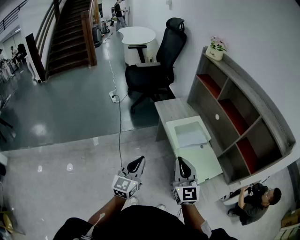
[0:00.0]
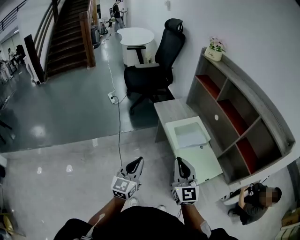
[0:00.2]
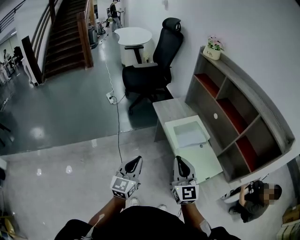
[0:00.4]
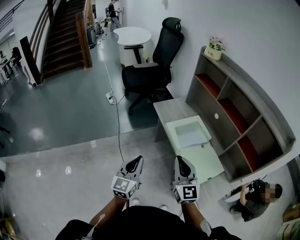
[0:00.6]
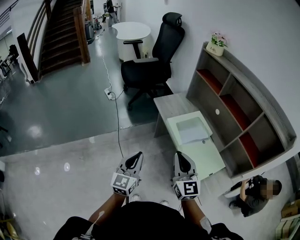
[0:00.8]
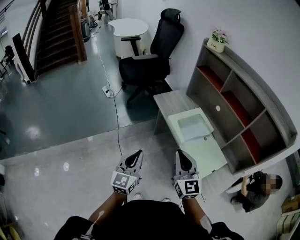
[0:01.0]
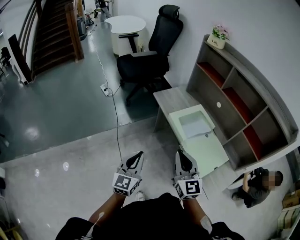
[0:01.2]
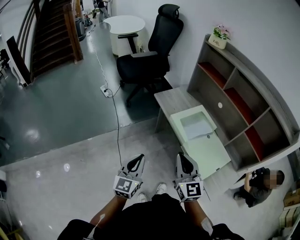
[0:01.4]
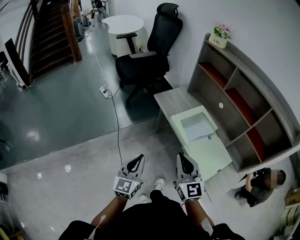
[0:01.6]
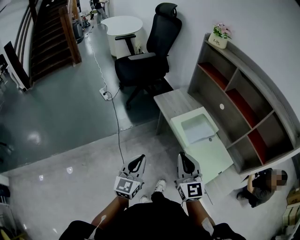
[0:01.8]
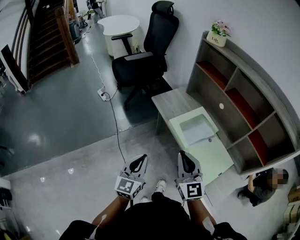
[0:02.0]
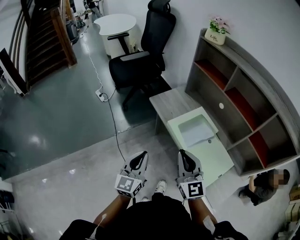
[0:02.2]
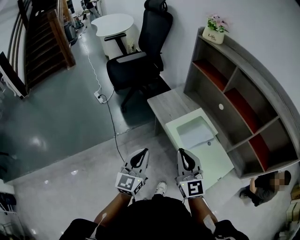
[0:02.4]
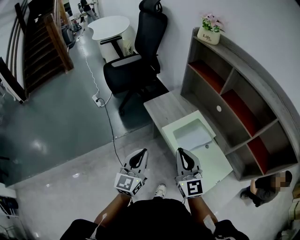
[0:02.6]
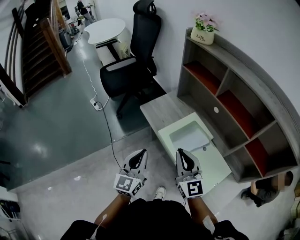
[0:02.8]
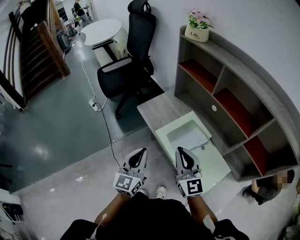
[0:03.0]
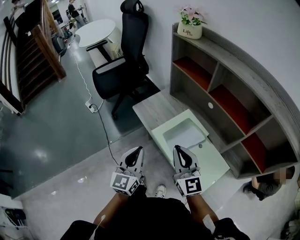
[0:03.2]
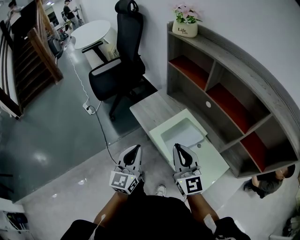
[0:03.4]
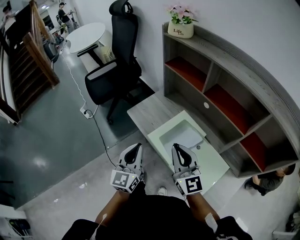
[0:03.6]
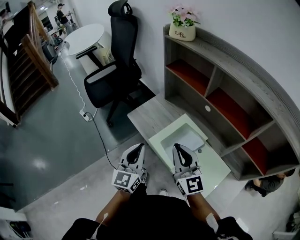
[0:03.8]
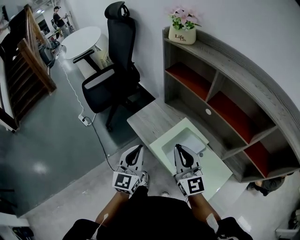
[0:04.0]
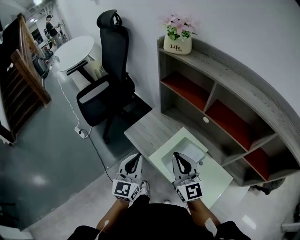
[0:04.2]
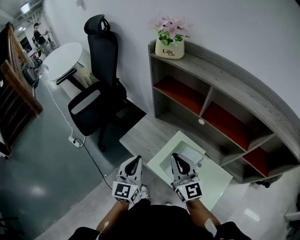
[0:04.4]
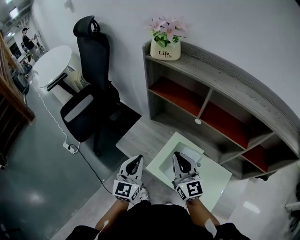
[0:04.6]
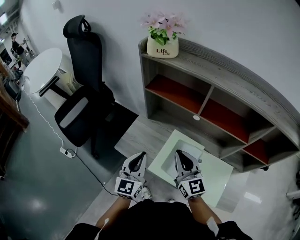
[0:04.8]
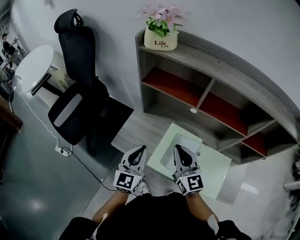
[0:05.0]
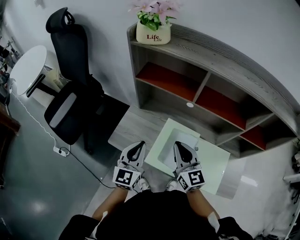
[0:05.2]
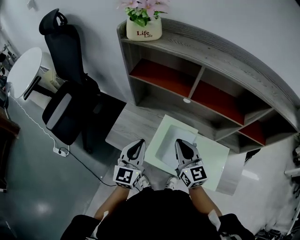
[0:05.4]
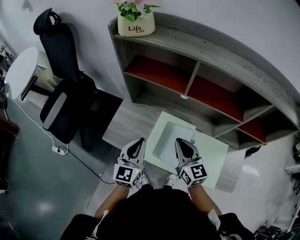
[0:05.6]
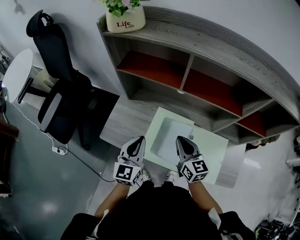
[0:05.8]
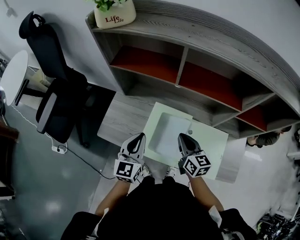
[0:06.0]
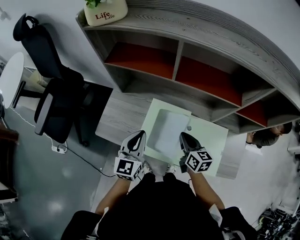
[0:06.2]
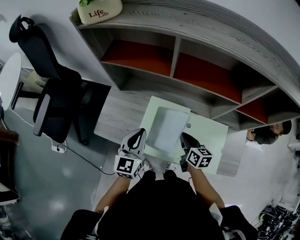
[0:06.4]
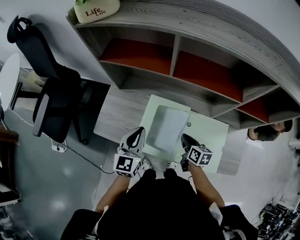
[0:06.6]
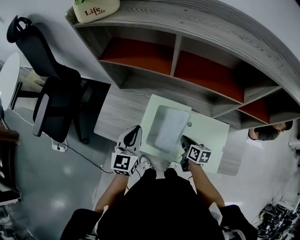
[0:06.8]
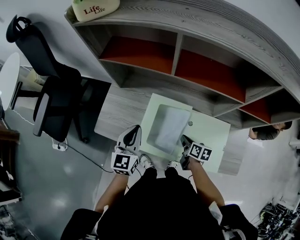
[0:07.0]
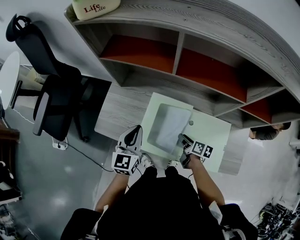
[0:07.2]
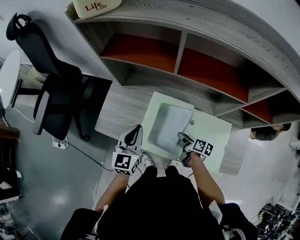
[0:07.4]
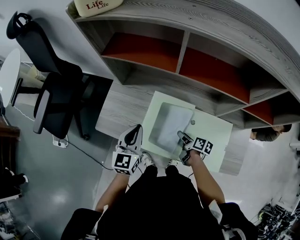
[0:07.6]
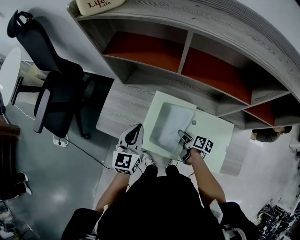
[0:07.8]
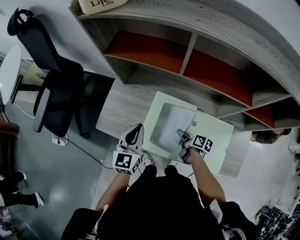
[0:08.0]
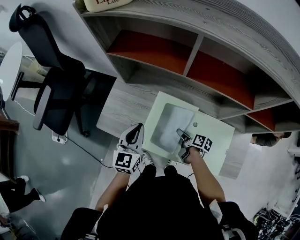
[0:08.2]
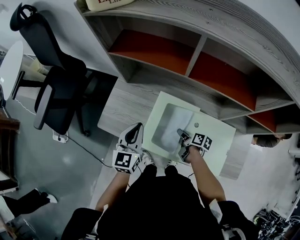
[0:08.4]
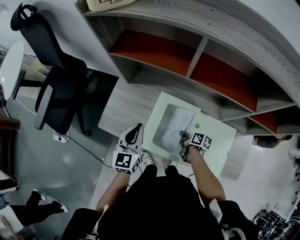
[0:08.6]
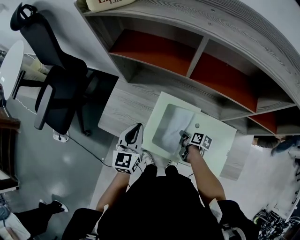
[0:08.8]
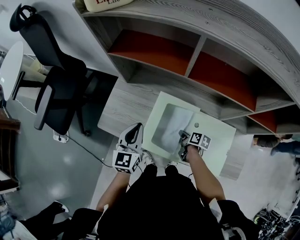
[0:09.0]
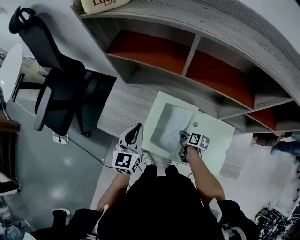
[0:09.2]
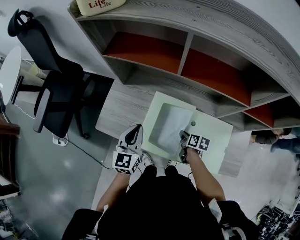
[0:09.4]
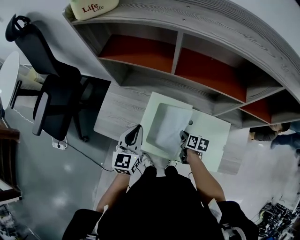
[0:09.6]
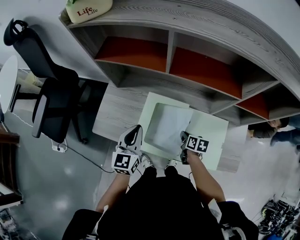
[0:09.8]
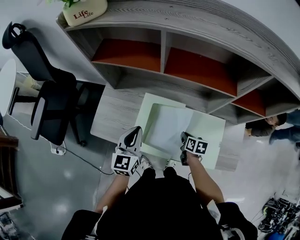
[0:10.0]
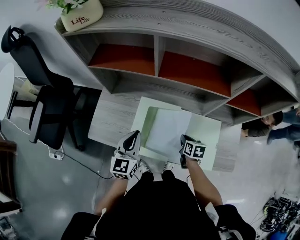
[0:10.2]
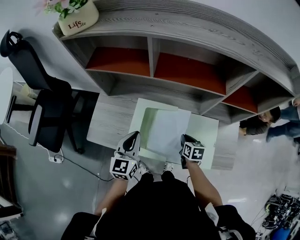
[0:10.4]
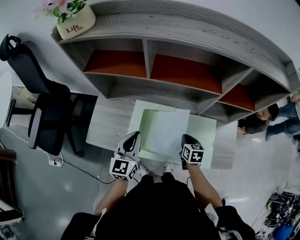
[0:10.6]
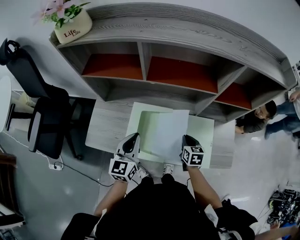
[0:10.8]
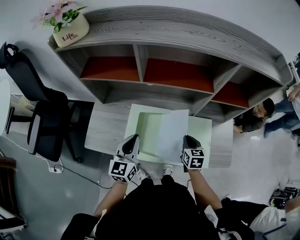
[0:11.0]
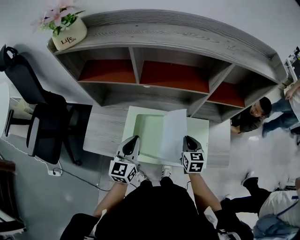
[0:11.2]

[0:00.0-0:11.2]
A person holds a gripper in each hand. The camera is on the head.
0:00.0 to 0:01.6: The grippers both shift to the left by about 10 cm.
0:01.6 to 0:03.2: Both grippers move forward and to the right, some 20 cm.
0:03.2 to 0:04.8: Both grippers travel together forward, about 20 cm. The right gripper swivels some 20 degrees. The left gripper turns by about 20 degrees.
0:04.8 to 0:06.4: The left gripper goes about 10 cm to the right and downward. Meanwhile the right gripper travels downward and to the right by roughly 25 cm, and tilts its fingers about 30 degrees downward.
0:06.4 to 0:08.0: The right gripper heads downward, covering about 10 cm, changes its angle by roughly 40 degrees, and opens its fingers.
0:08.0 to 0:09.6: The right gripper rotates roughly 20 degrees, and closes.
0:09.6 to 0:11.2: The right gripper travels upward and to the right by about 15 cm, and rotates about 40 degrees; the left gripper moves to the right, roughly 10 cm.

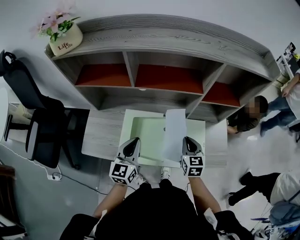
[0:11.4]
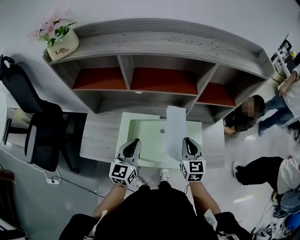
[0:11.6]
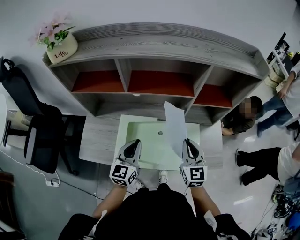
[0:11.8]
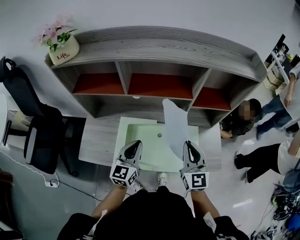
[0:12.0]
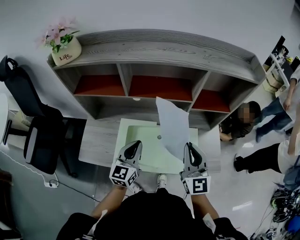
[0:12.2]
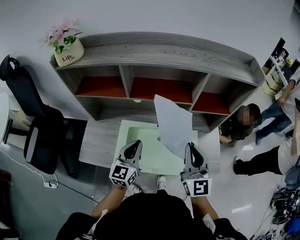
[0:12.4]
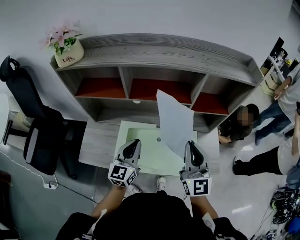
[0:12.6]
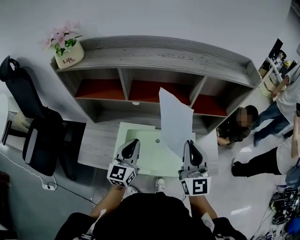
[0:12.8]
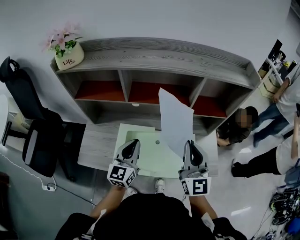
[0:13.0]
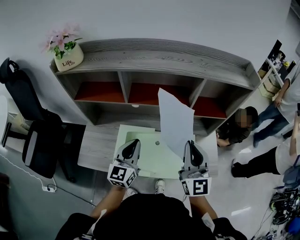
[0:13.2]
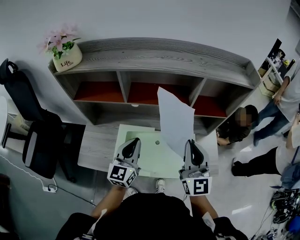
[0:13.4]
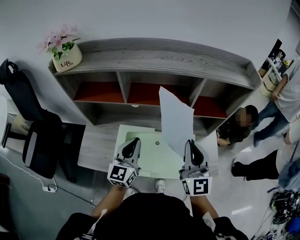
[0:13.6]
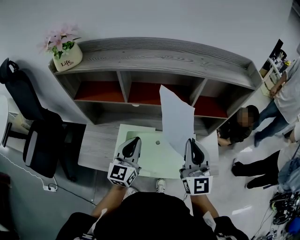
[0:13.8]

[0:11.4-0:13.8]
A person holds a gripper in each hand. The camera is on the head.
0:11.4 to 0:12.6: The left gripper travels upward by some 5 cm; the right gripper moves upward, about 25 cm, and tips its fingers upward by about 40 degrees.
0:12.6 to 0:13.8: The grippers make only small movements.

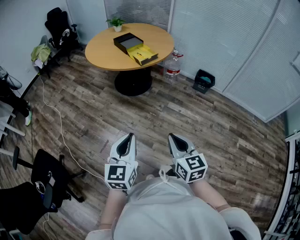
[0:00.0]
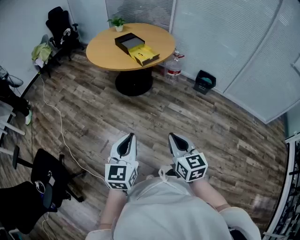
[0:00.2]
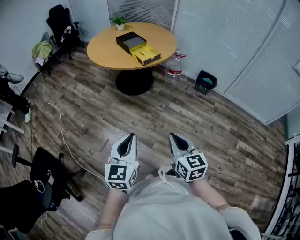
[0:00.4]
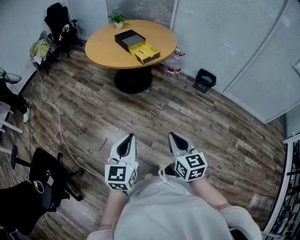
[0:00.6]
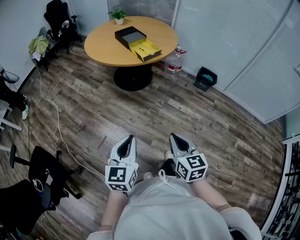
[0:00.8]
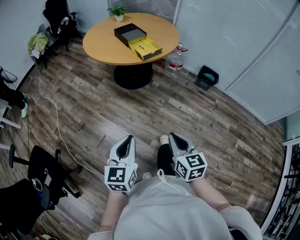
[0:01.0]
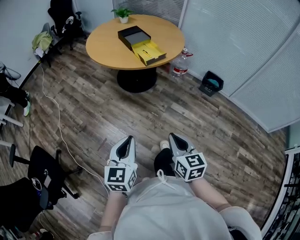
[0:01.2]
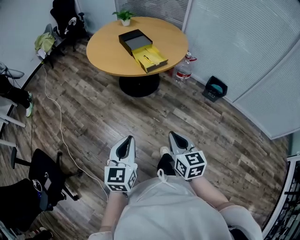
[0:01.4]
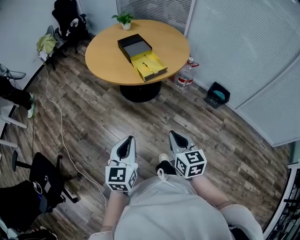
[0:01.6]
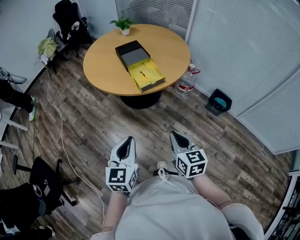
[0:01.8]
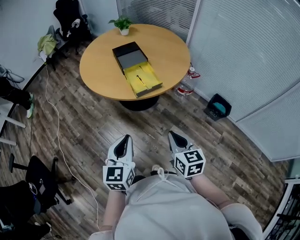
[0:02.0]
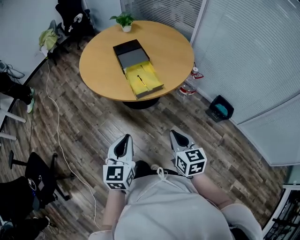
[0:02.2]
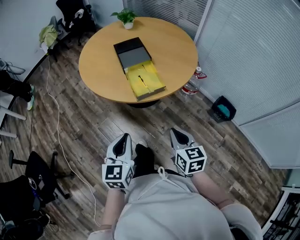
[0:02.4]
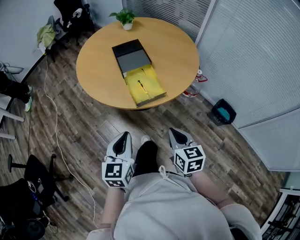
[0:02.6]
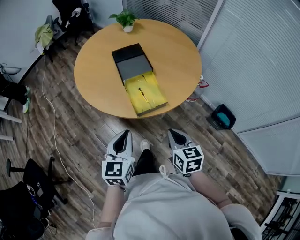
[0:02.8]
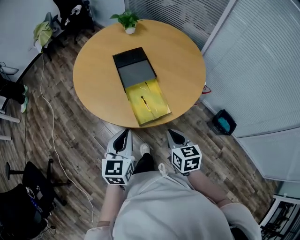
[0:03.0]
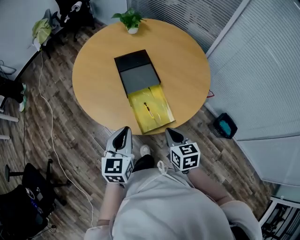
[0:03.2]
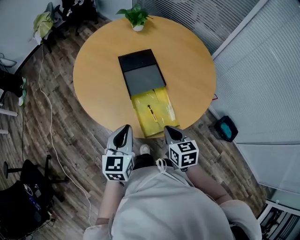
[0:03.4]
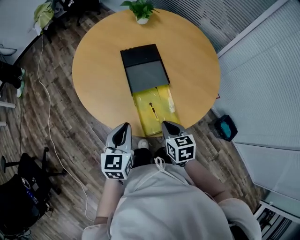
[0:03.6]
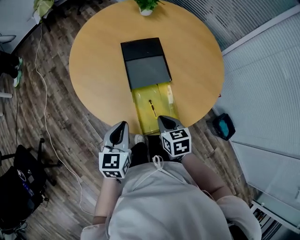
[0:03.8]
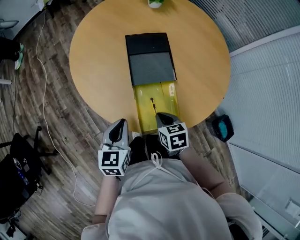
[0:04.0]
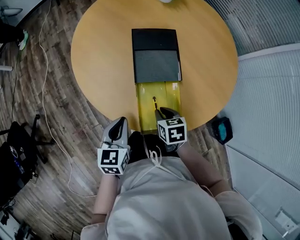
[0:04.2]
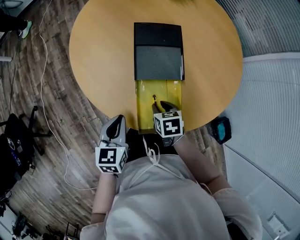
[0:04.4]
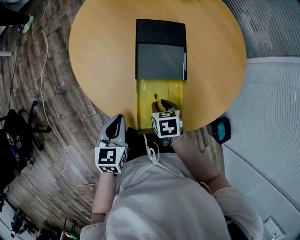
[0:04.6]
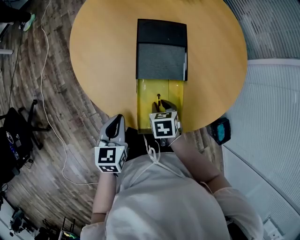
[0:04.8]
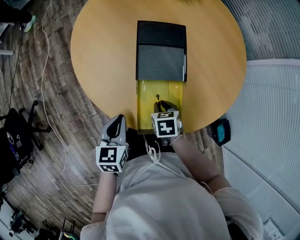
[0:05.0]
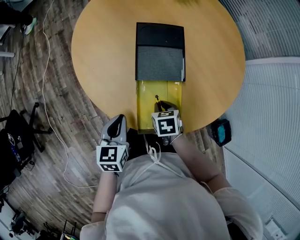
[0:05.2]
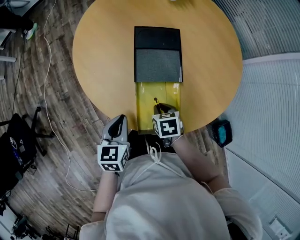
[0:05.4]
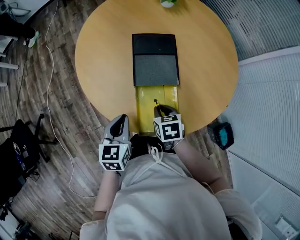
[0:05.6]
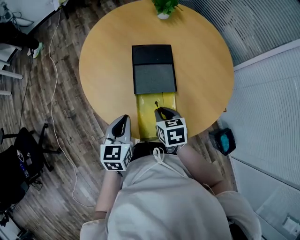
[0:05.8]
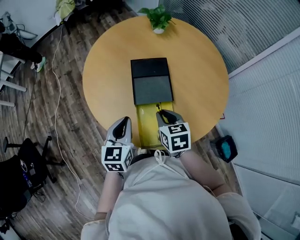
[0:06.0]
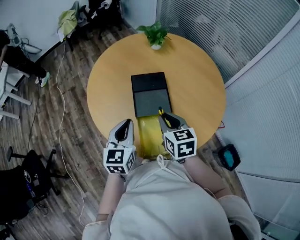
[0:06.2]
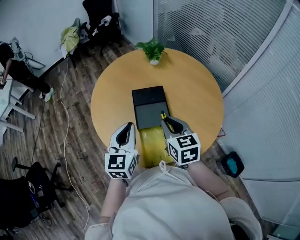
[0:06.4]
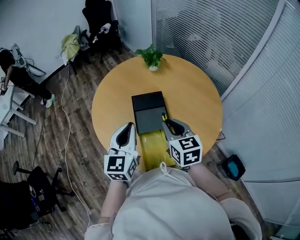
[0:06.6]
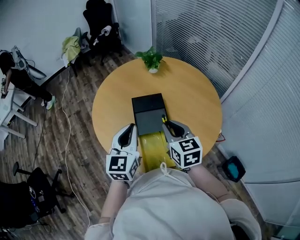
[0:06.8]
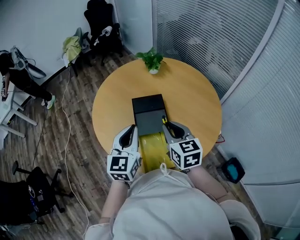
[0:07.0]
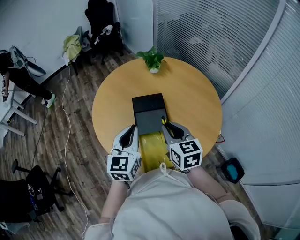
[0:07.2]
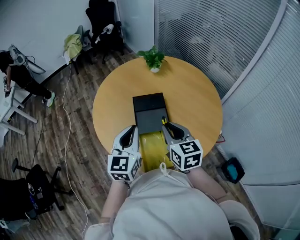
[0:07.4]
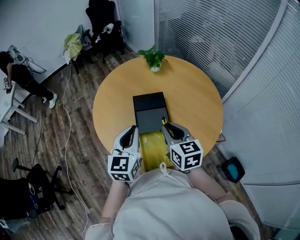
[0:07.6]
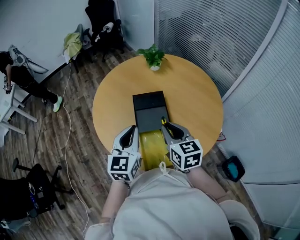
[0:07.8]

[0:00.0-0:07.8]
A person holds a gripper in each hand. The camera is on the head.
0:00.0 to 0:01.6: The grippers both shift forward by about 30 cm.
0:01.6 to 0:03.2: Both grippers are carried forward, approximately 50 cm.
0:03.2 to 0:04.6: The right gripper travels forward and downward by some 25 cm, swivels approximately 30 degrees, and opens. Meanwhile the left gripper goes some 15 cm downward and forward, and swivels roughly 30 degrees.
0:04.6 to 0:06.2: The grippers both shift upward by roughly 20 cm. The right gripper tips its fingers upward by some 30 degrees, while the left gripper swivels roughly 20 degrees.
0:06.2 to 0:07.8: Both grippers move upward, approximately 10 cm.

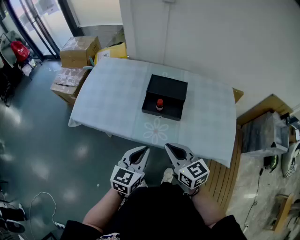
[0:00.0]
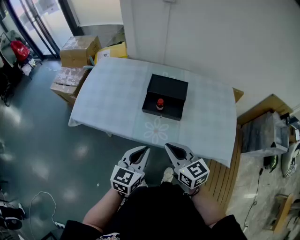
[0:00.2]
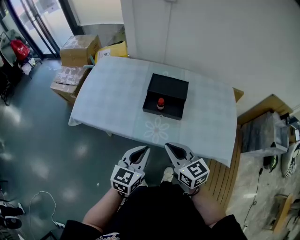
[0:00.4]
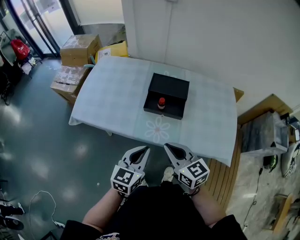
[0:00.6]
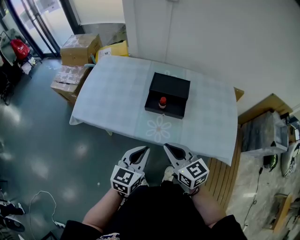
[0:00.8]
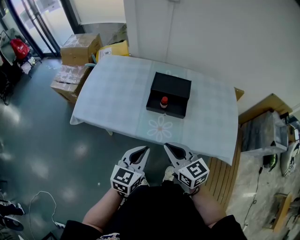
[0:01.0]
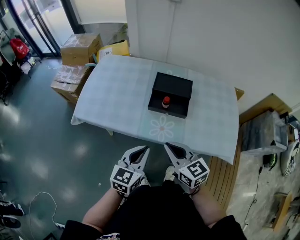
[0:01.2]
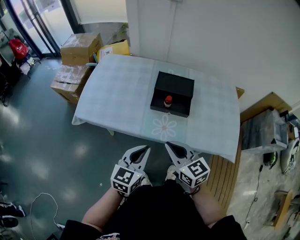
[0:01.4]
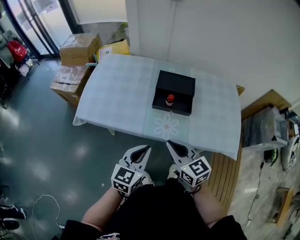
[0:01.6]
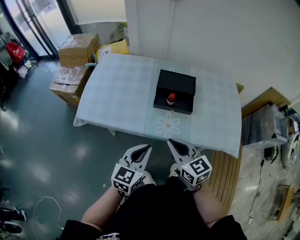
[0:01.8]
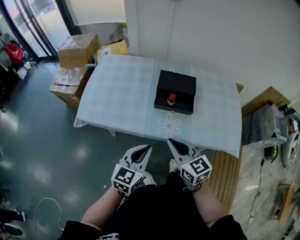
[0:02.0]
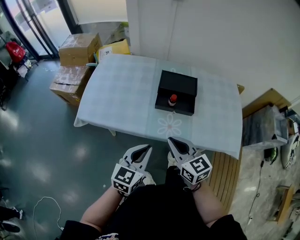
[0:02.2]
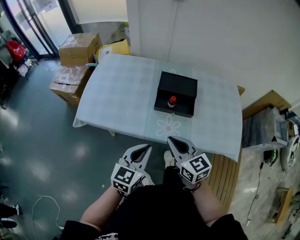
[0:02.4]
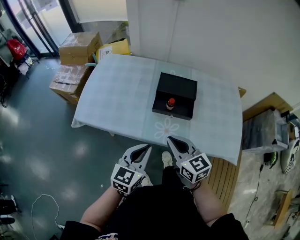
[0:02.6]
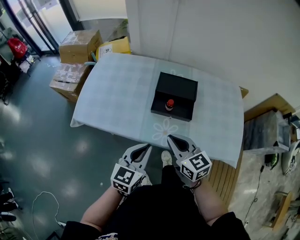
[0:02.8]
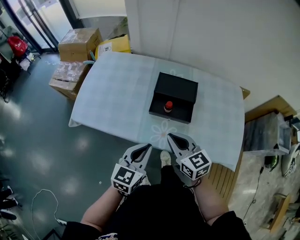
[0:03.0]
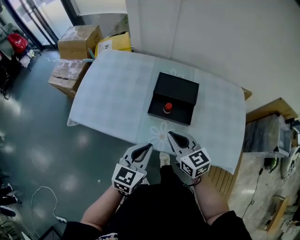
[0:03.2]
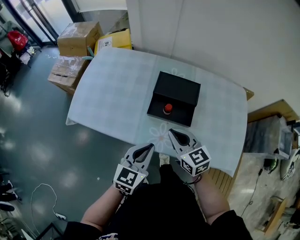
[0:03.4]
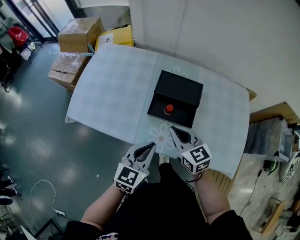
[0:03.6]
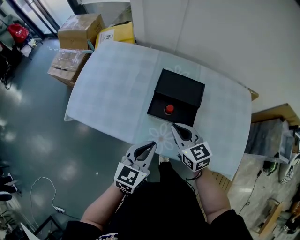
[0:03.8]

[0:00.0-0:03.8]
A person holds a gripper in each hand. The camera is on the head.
0:00.0 to 0:01.2: The grippers move only a little.
0:01.2 to 0:02.6: The right gripper ends up some 5 cm from where it was.
0:02.6 to 0:03.8: The right gripper goes approximately 15 cm forward, downward and to the right. Meanwhile the left gripper travels forward and to the right by about 10 cm.
